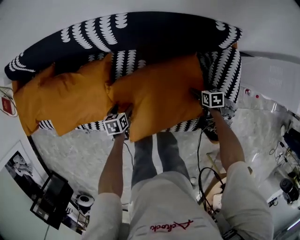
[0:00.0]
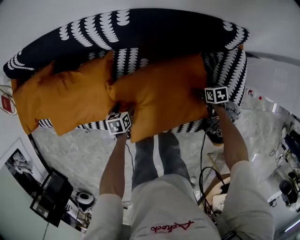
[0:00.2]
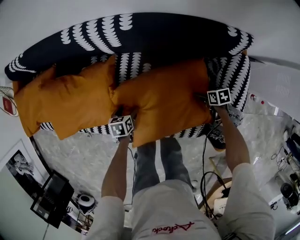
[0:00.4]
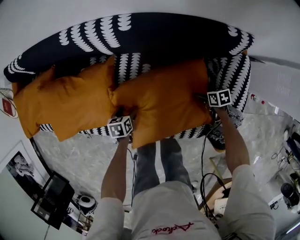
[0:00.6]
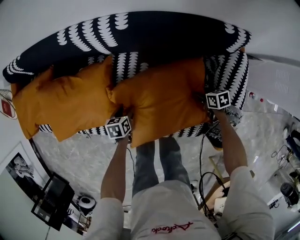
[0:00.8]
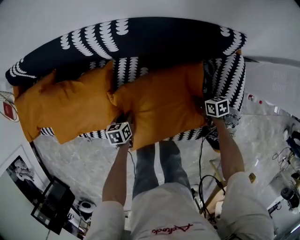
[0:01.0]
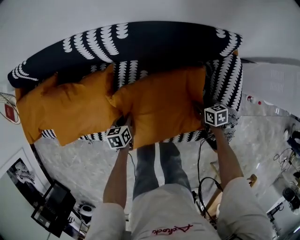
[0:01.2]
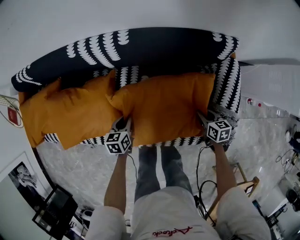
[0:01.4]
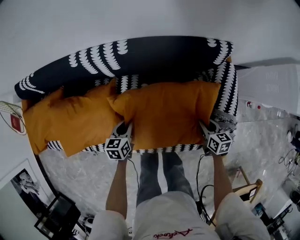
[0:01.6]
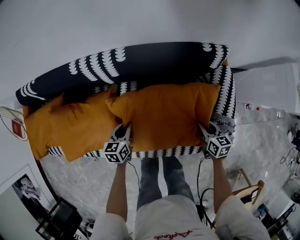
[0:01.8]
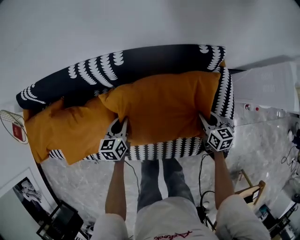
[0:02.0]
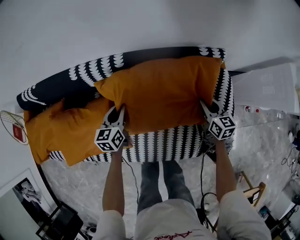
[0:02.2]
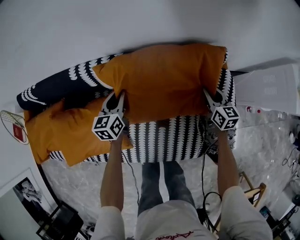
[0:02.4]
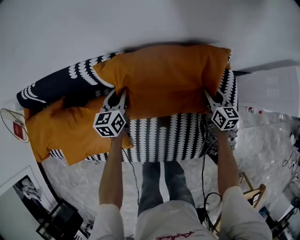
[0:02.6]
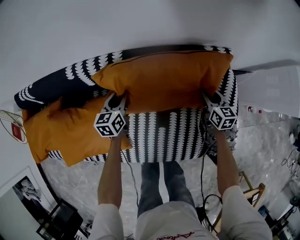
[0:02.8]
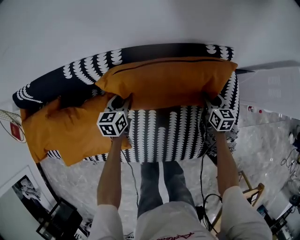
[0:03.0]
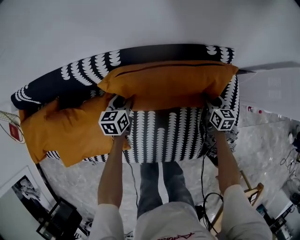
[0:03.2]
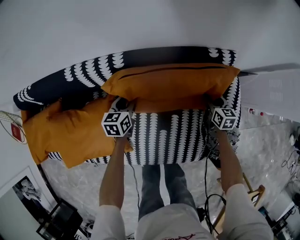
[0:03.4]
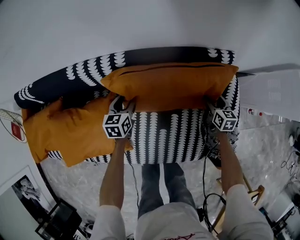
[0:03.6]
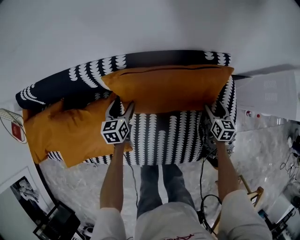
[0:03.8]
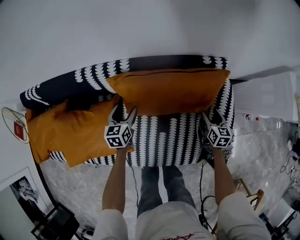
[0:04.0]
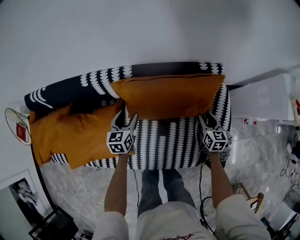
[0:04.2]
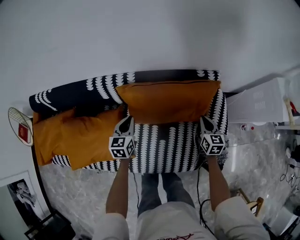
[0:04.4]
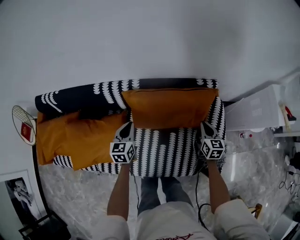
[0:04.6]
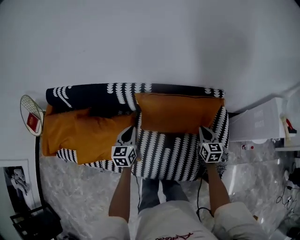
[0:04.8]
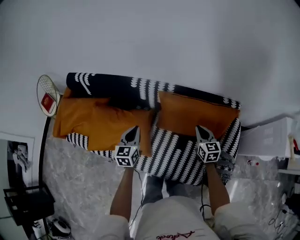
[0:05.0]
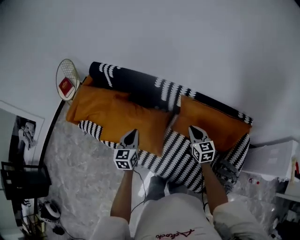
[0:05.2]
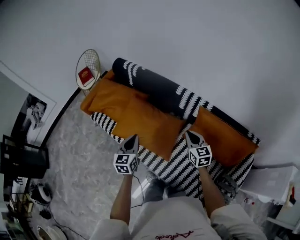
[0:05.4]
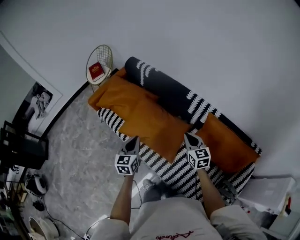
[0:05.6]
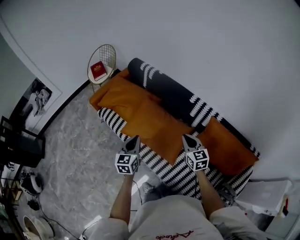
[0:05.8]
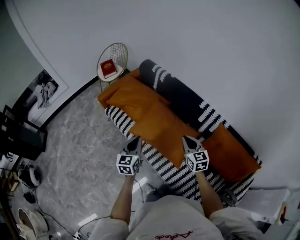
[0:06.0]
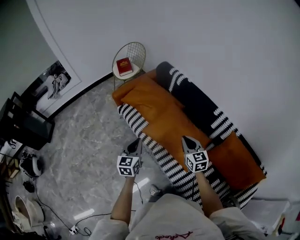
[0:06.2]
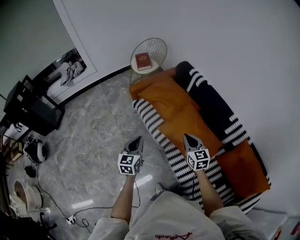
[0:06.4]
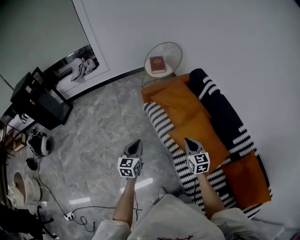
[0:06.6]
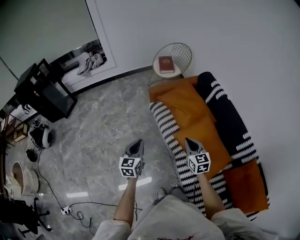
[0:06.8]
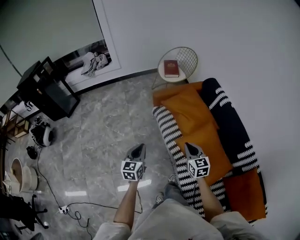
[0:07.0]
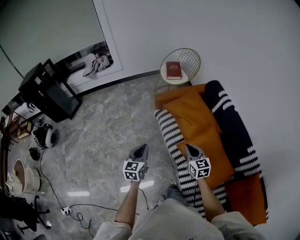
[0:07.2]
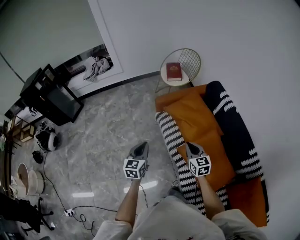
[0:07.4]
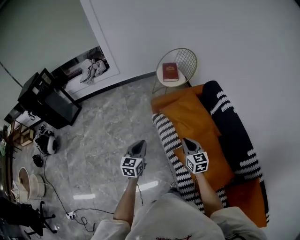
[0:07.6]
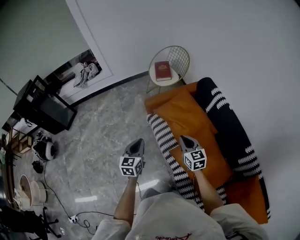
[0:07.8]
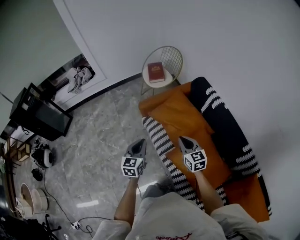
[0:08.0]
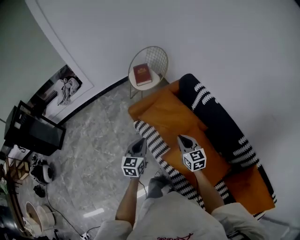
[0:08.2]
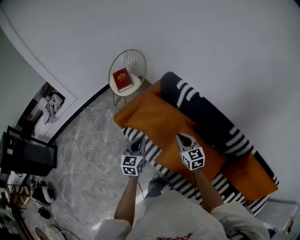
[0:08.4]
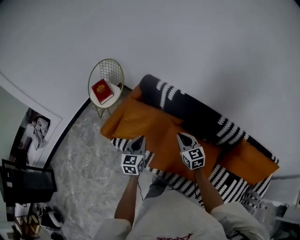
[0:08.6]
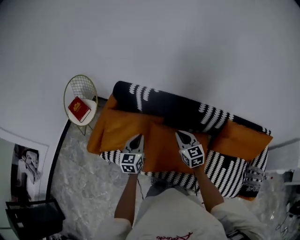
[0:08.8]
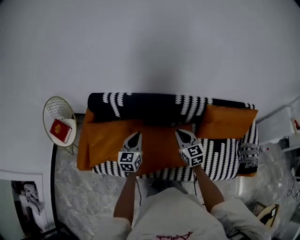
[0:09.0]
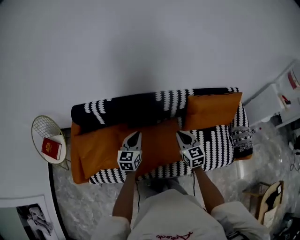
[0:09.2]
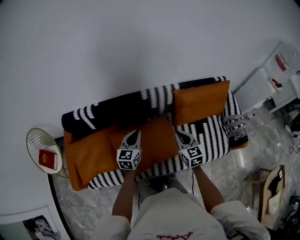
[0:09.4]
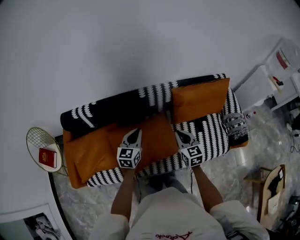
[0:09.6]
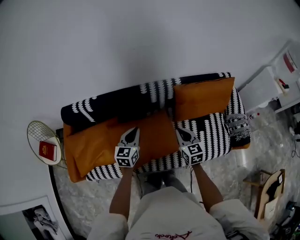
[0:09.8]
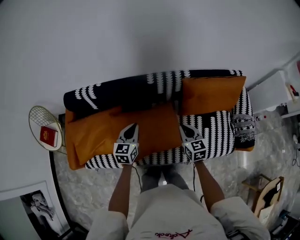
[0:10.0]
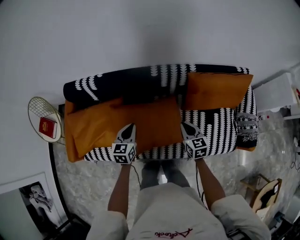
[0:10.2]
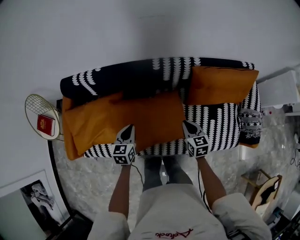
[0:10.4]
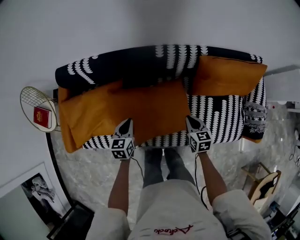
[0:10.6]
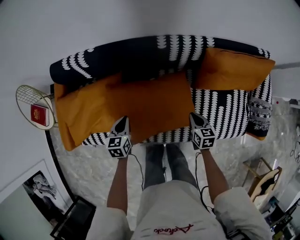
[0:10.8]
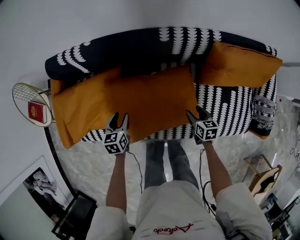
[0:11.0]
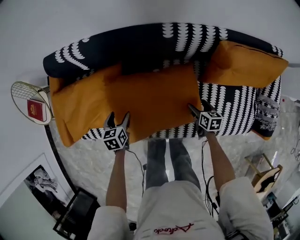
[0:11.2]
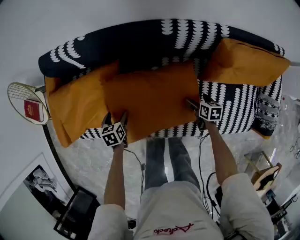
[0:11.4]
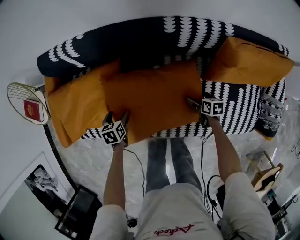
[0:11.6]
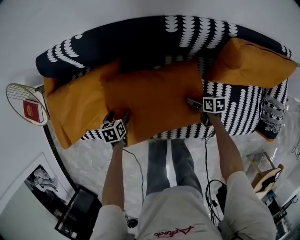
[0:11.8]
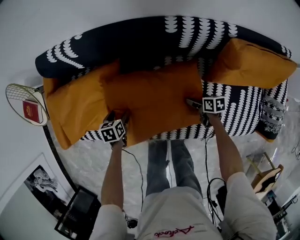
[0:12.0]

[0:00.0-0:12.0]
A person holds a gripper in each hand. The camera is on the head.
0:00.0 to 0:01.6: The right gripper moves upward and backward, approximately 15 cm, rotates approximately 30 degrees, and closes its fingers. Meanwhile the left gripper moves upward, roughly 10 cm, turns by roughly 20 degrees, and closes up.
0:01.6 to 0:03.0: The two grippers go approximately 20 cm forward.
0:03.0 to 0:04.4: Both grippers move upward and backward, roughly 15 cm. The left gripper opens, then closes once more.
0:04.4 to 0:06.0: The pair of grippers is taken approximately 50 cm. The left gripper swivels about 50 degrees; the right gripper rotates roughly 60 degrees.
0:06.0 to 0:07.6: The right gripper moves roughly 40 cm, and rotates approximately 30 degrees, while the left gripper ends up roughly 30 cm from where it was, and swivels roughly 20 degrees.
0:07.6 to 0:09.0: The left gripper shifts by approximately 40 cm, and swivels approximately 70 degrees. The right gripper changes place by approximately 30 cm, and turns by about 60 degrees.
0:09.0 to 0:10.4: The right gripper is displaced to the right and downward by approximately 25 cm, and rotates about 20 degrees, while the left gripper heads downward and to the right, covering about 15 cm.
0:10.4 to 0:12.0: The right gripper moves downward, about 30 cm, swivels about 40 degrees, and opens, while the left gripper travels downward and to the left by approximately 25 cm, points its fingers some 30 degrees further downward, and opens up.

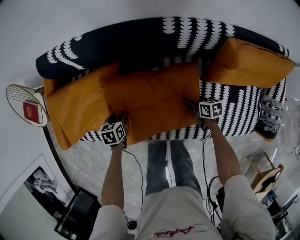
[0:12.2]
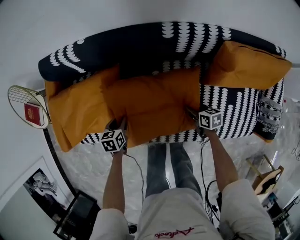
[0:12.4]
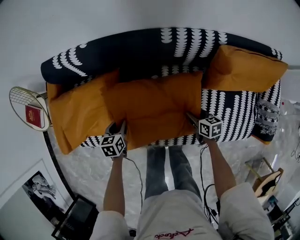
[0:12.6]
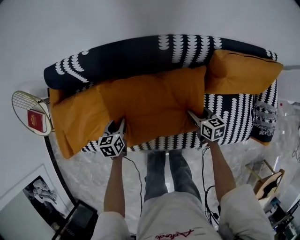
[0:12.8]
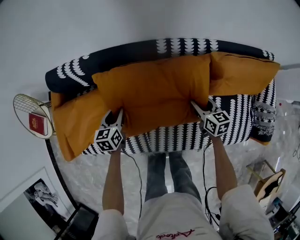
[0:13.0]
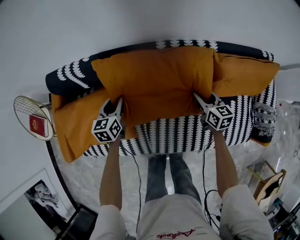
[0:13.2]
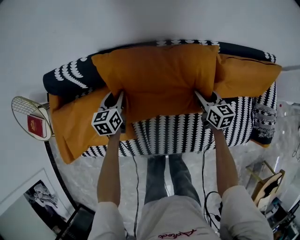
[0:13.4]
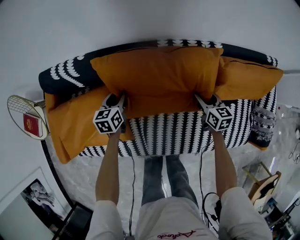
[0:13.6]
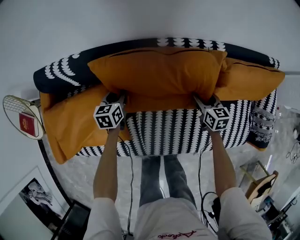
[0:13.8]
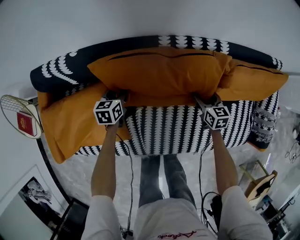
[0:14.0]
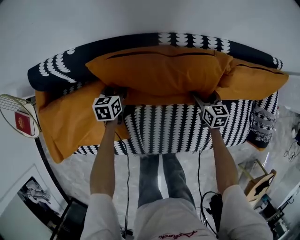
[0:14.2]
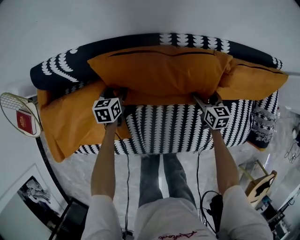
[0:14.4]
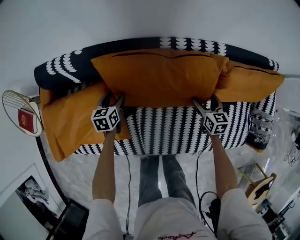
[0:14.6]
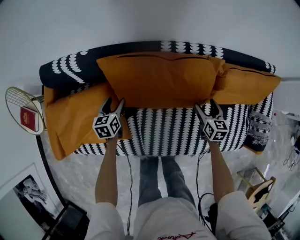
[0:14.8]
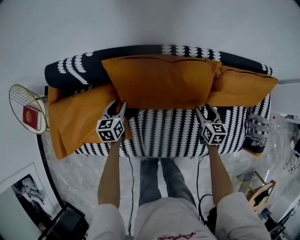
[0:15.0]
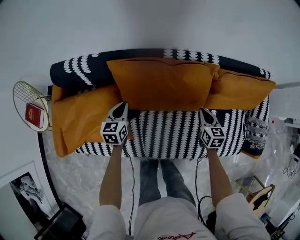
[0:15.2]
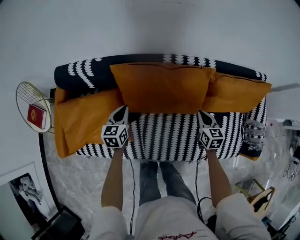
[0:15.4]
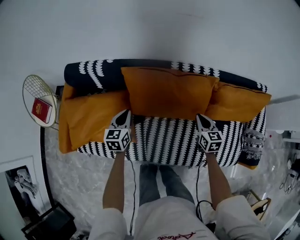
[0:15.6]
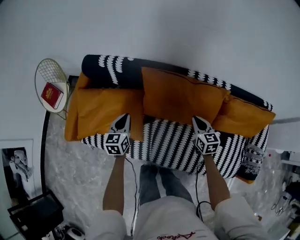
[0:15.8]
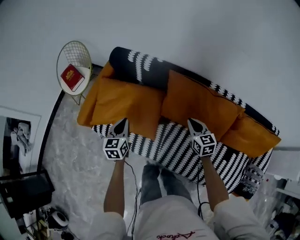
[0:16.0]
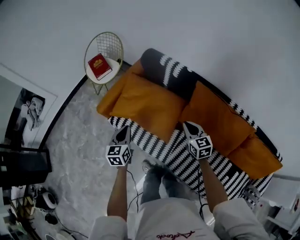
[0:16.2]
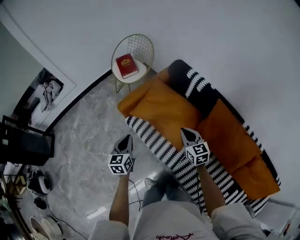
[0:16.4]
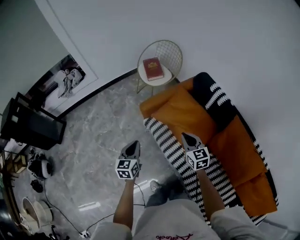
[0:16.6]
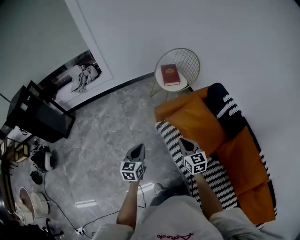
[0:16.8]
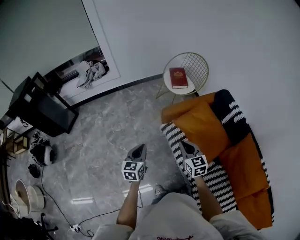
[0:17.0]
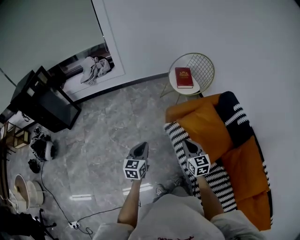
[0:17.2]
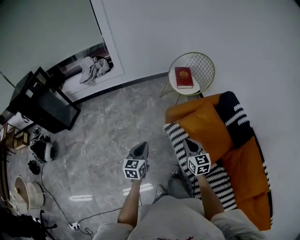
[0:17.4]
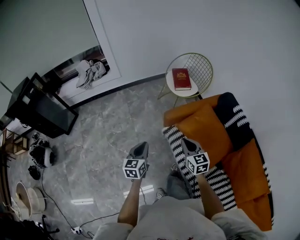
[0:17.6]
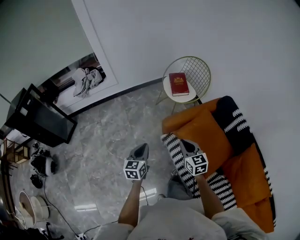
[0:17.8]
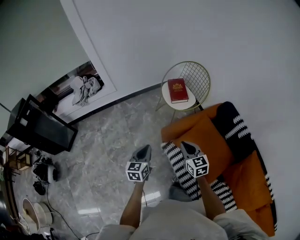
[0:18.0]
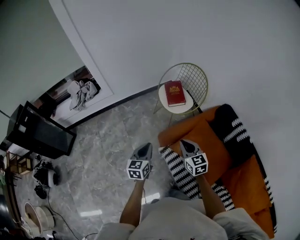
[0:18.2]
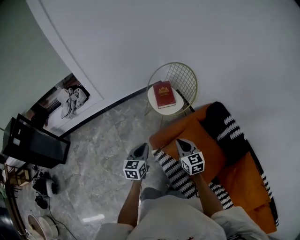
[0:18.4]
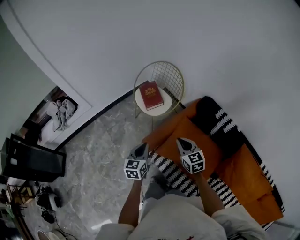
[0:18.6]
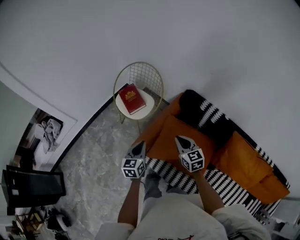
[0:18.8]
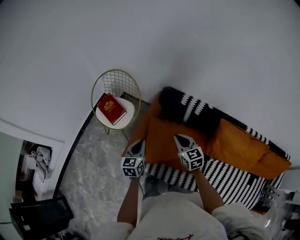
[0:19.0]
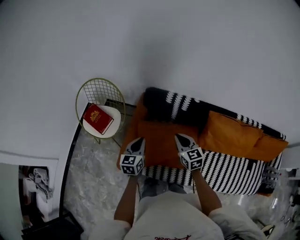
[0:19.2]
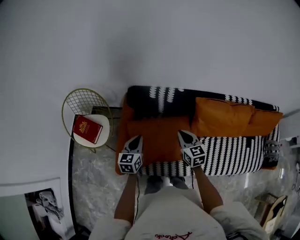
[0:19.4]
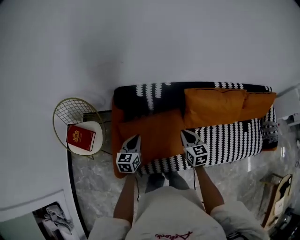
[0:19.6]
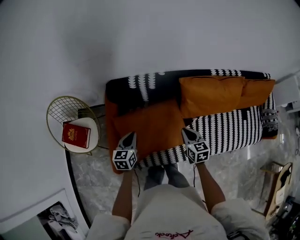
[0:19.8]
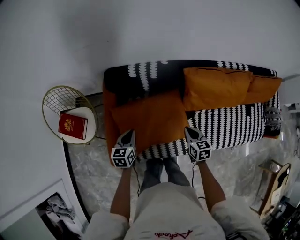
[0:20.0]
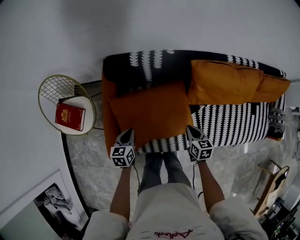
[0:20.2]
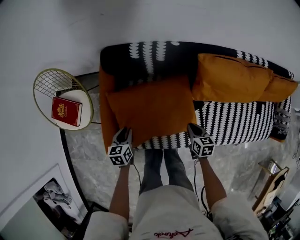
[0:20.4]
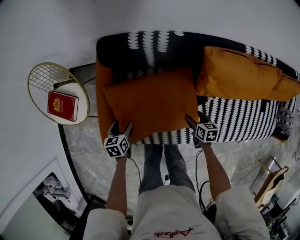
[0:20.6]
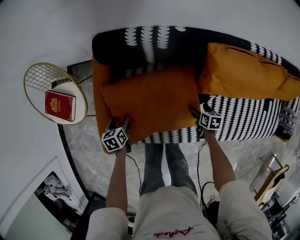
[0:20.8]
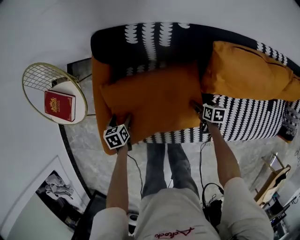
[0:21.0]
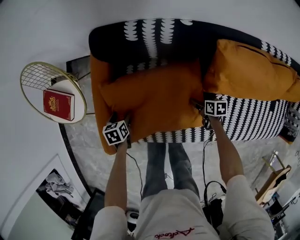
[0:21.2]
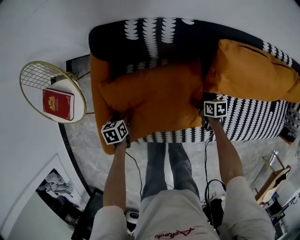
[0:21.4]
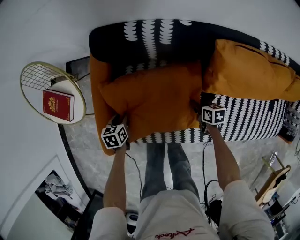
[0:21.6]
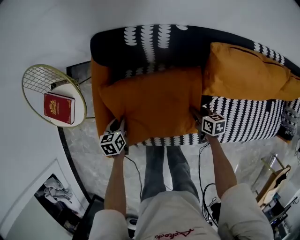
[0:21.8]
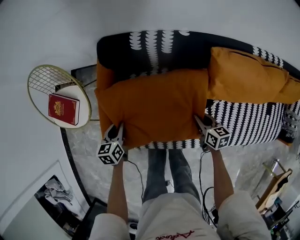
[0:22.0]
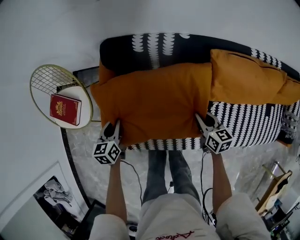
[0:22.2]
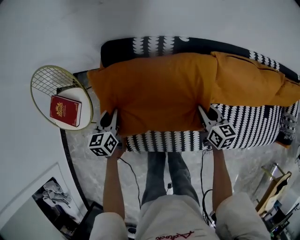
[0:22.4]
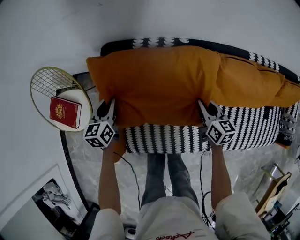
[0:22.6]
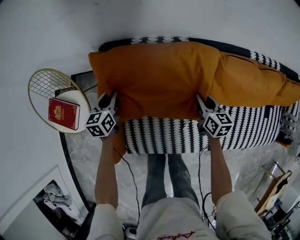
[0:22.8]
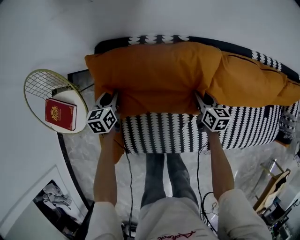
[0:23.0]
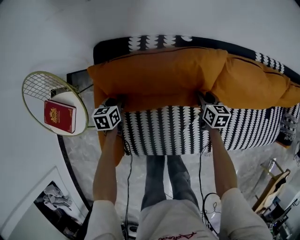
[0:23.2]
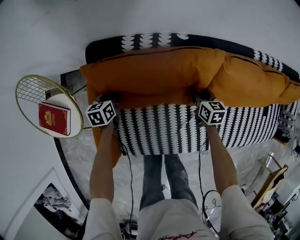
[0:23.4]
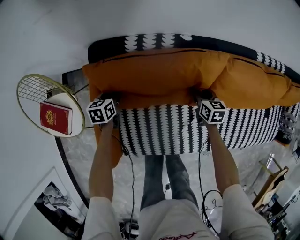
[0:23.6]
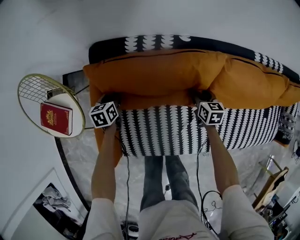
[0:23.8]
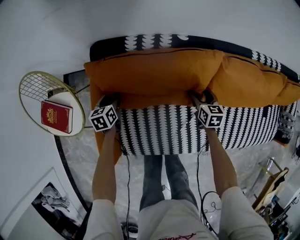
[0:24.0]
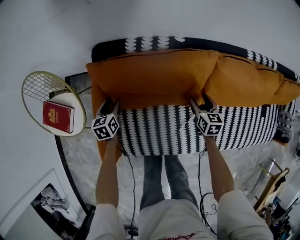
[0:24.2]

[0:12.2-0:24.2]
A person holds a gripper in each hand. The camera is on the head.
0:12.2 to 0:13.8: The left gripper shifts some 20 cm forward and to the right, and swivels about 20 degrees, while the right gripper heads forward, upward and to the right, covering roughly 20 cm, and rotates some 30 degrees.
0:13.8 to 0:15.2: The right gripper travels backward and upward by roughly 10 cm, and closes up, while the left gripper shifts roughly 10 cm upward and backward.
0:15.2 to 0:16.6: The pair of grippers is taken roughly 60 cm. The left gripper rotates approximately 60 degrees. Meanwhile the right gripper rotates approximately 80 degrees.
0:16.6 to 0:18.2: The two grippers go approximately 25 cm forward.
0:18.2 to 0:19.8: The right gripper ends up some 35 cm from where it was, and turns by roughly 80 degrees, while the left gripper moves approximately 40 cm, and swivels some 70 degrees.
0:19.8 to 0:21.2: Both grippers move downward, about 30 cm. The right gripper turns by roughly 40 degrees, and opens its fingers. Meanwhile the left gripper tilts its fingers approximately 30 degrees downward, and opens.
0:21.2 to 0:22.6: The left gripper is displaced upward and forward by some 25 cm, tilts its fingers approximately 40 degrees upward, and closes its fingers. The right gripper is displaced upward by some 25 cm, points its fingers about 30 degrees further upward, and closes.
0:22.6 to 0:24.2: The grippers both shift downward by roughly 10 cm. The left gripper opens its fingers, while the right gripper opens its fingers.
